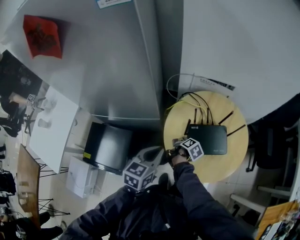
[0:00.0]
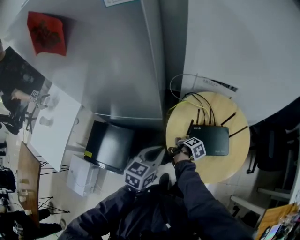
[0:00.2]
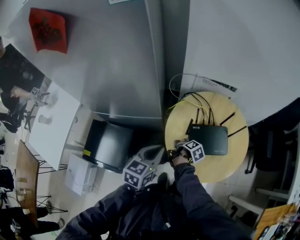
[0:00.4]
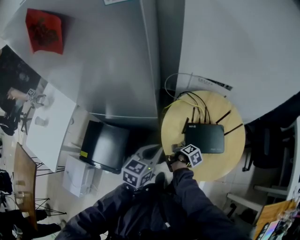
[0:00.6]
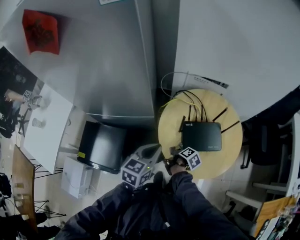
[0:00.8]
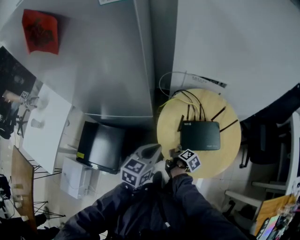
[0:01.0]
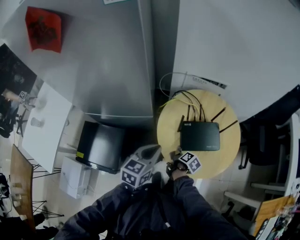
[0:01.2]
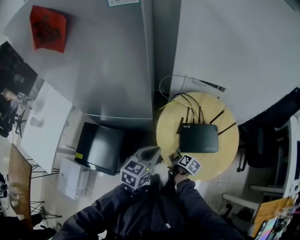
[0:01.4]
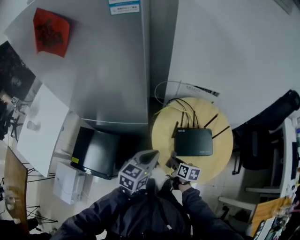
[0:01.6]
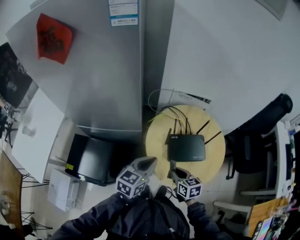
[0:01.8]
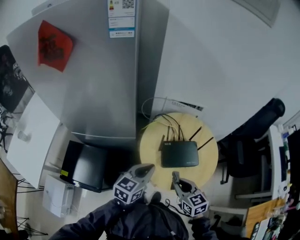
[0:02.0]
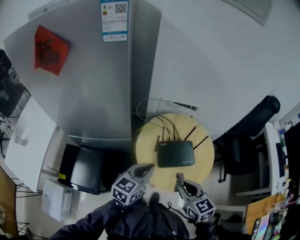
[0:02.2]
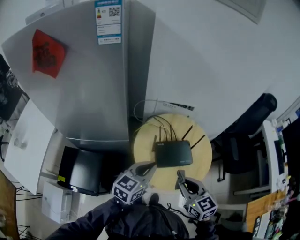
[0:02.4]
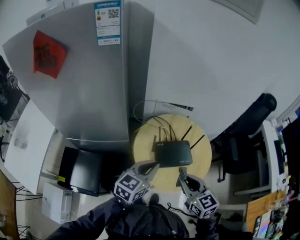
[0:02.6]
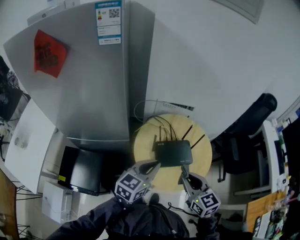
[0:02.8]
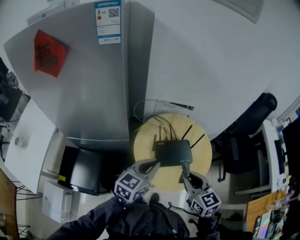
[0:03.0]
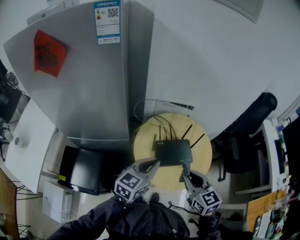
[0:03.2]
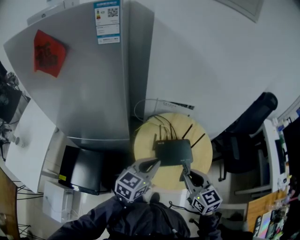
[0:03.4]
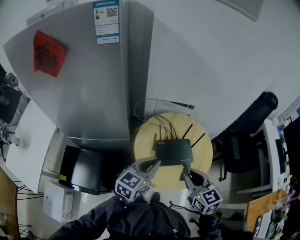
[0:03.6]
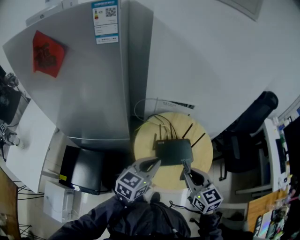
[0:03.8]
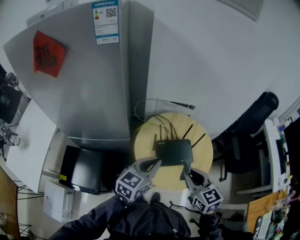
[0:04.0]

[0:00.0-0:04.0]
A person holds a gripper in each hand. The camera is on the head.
0:00.0 to 0:01.4: The right gripper travels backward by roughly 10 cm.
0:01.4 to 0:02.6: The left gripper heads upward and to the right, covering roughly 15 cm. Meanwhile the right gripper heads upward, covering approximately 30 cm, and twists roughly 60 degrees counterclockwise, seen from behind.
0:02.6 to 0:04.0: The grippers move only a little.

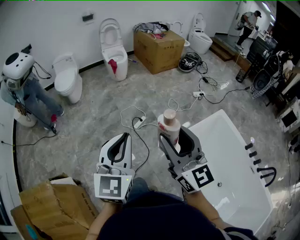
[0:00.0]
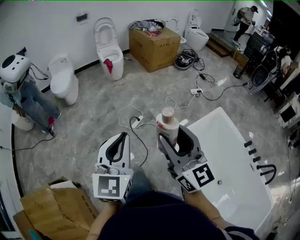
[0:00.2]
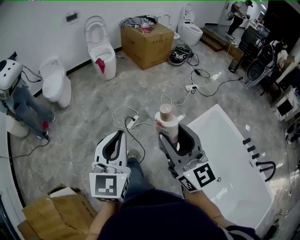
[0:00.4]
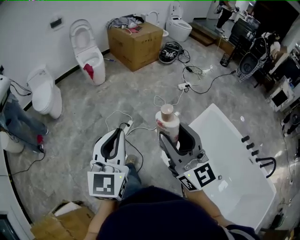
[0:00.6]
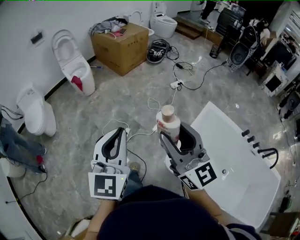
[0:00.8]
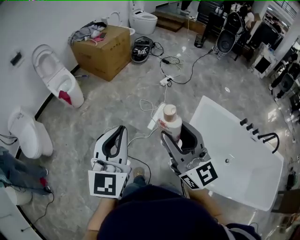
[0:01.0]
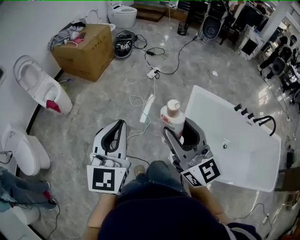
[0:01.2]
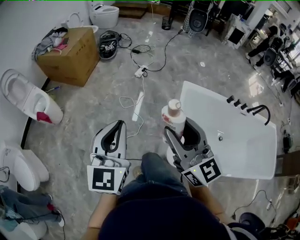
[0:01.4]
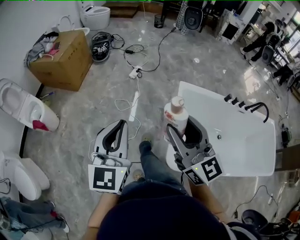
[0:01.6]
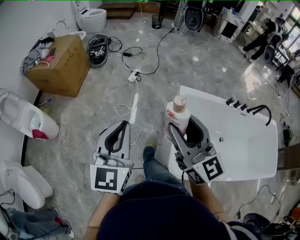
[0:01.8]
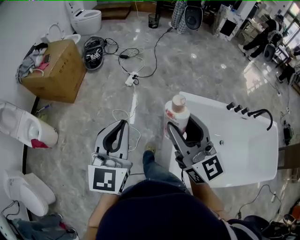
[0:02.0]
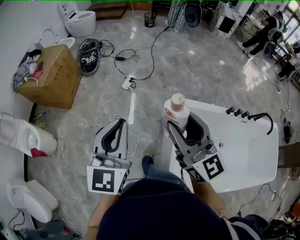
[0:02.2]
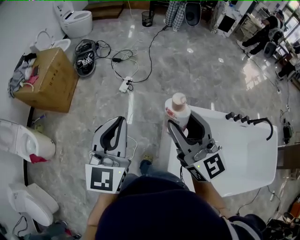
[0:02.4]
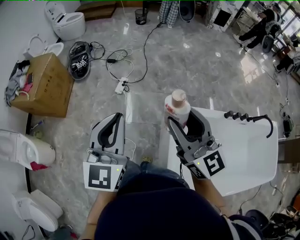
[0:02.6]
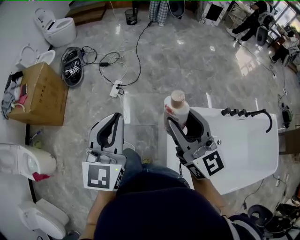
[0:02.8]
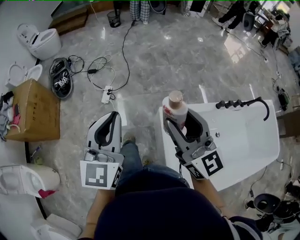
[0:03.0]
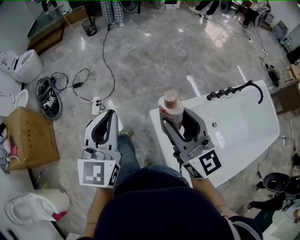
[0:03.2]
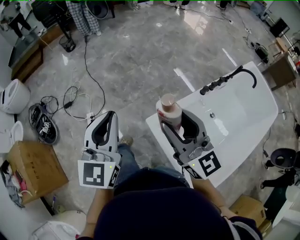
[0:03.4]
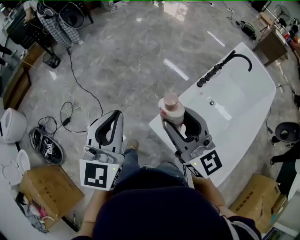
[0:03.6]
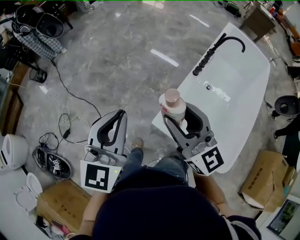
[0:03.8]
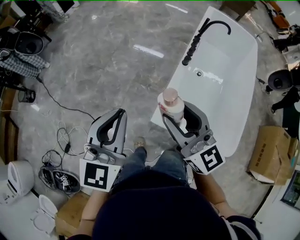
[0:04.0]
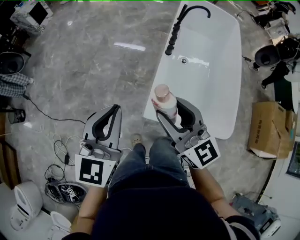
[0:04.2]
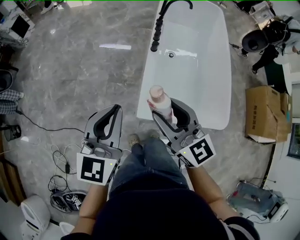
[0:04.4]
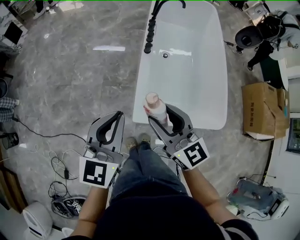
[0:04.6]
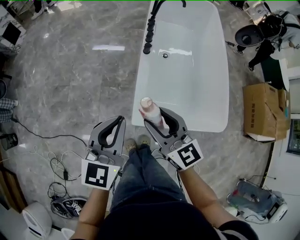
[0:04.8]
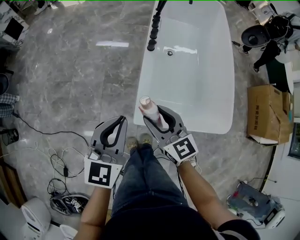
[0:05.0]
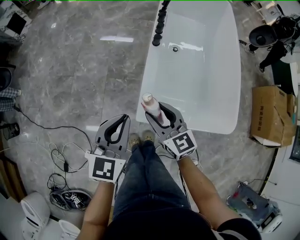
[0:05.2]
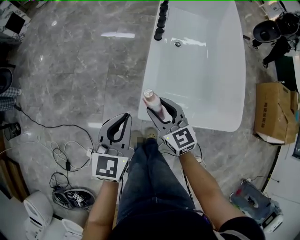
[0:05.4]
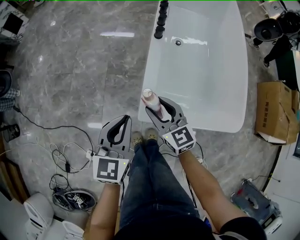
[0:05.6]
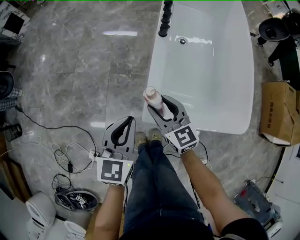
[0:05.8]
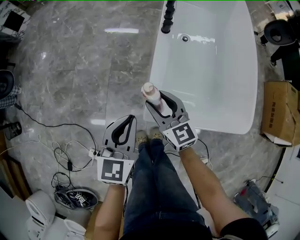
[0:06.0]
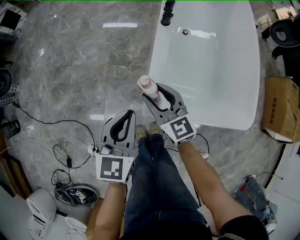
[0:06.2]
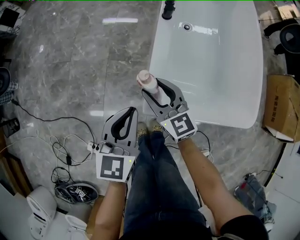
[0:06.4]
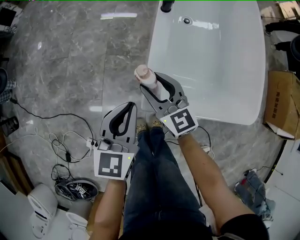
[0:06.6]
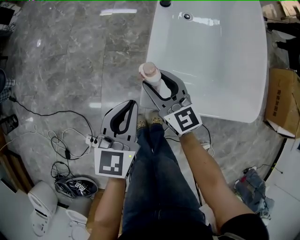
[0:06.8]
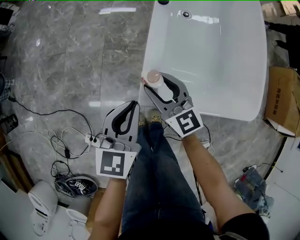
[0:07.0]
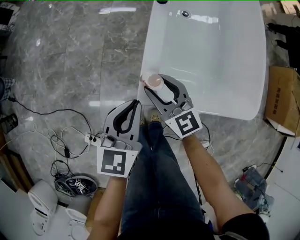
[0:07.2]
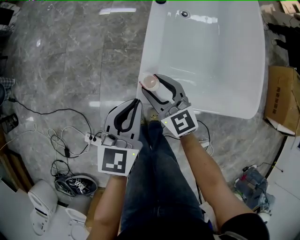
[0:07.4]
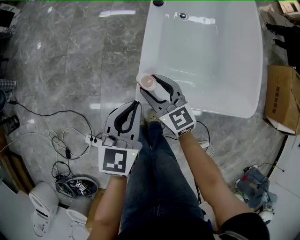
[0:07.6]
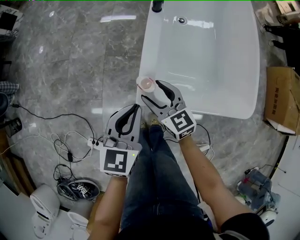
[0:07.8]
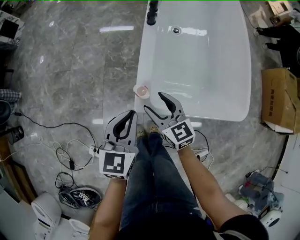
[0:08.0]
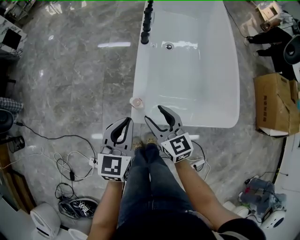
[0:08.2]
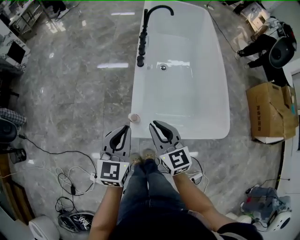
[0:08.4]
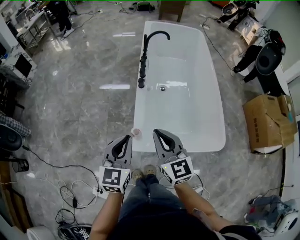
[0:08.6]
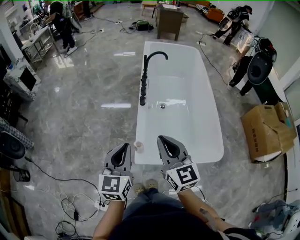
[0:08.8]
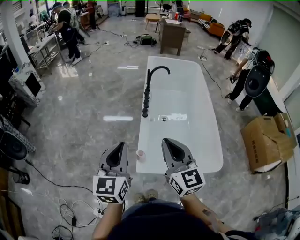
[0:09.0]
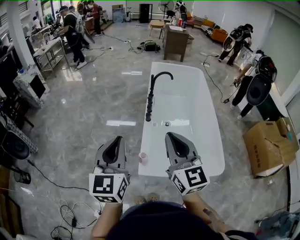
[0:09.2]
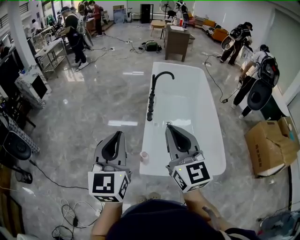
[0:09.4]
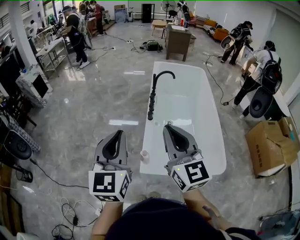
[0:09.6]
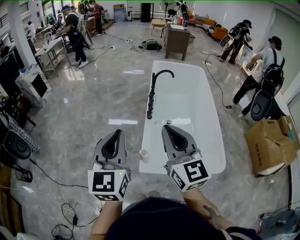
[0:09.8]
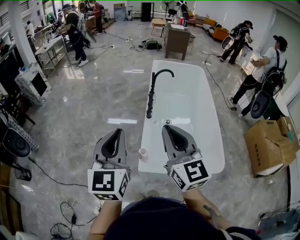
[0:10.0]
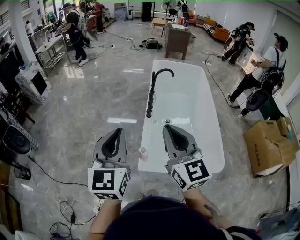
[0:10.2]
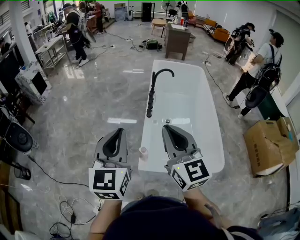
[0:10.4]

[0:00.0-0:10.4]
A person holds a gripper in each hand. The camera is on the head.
0:00.0 to 0:01.4: The right gripper moves roughly 35 cm, and rotates roughly 40 degrees. The left gripper moves about 50 cm, and changes its angle by approximately 40 degrees.
0:01.4 to 0:03.0: Both grippers are carried forward and to the right, approximately 50 cm. The left gripper rotates roughly 20 degrees, while the right gripper rotates roughly 20 degrees.
0:03.0 to 0:04.4: The right gripper moves some 20 cm, and changes its angle by some 70 degrees. Meanwhile the left gripper moves roughly 35 cm, and swivels roughly 80 degrees.
0:04.4 to 0:06.0: Both grippers travel together downward, about 25 cm.
0:06.0 to 0:07.4: The right gripper goes about 5 cm downward, while the left gripper moves about 5 cm.
0:07.4 to 0:09.0: Both grippers travel together upward, roughly 40 cm. The left gripper swivels about 20 degrees, while the right gripper turns by approximately 30 degrees, and closes its fingers.
0:09.0 to 0:10.4: Both grippers move upward, about 10 cm.

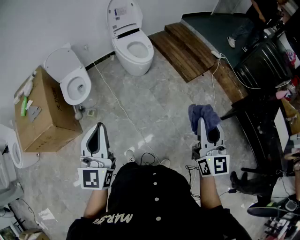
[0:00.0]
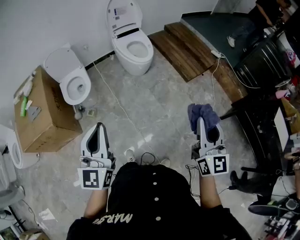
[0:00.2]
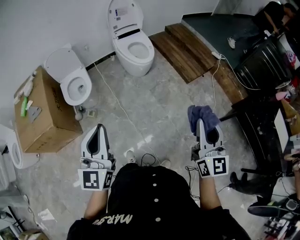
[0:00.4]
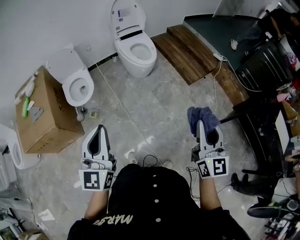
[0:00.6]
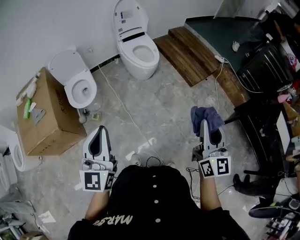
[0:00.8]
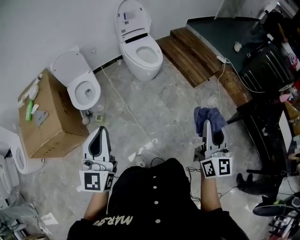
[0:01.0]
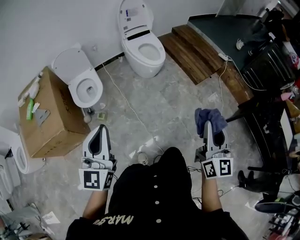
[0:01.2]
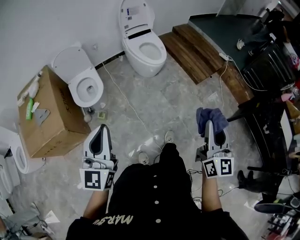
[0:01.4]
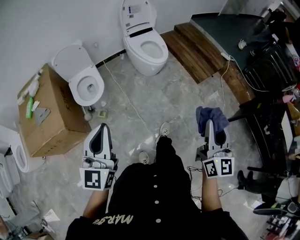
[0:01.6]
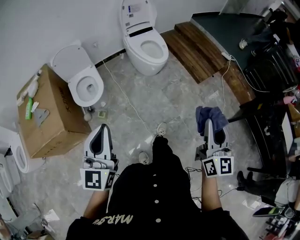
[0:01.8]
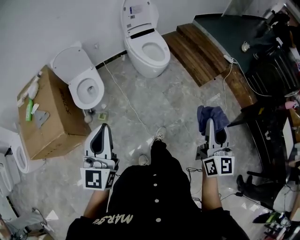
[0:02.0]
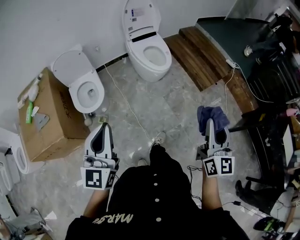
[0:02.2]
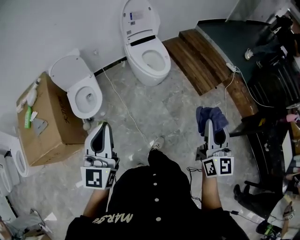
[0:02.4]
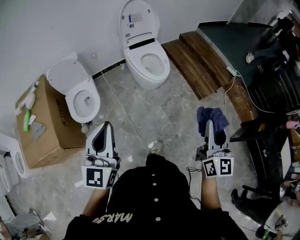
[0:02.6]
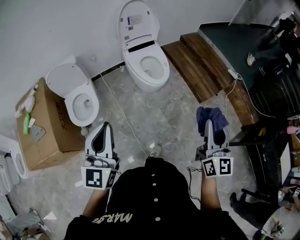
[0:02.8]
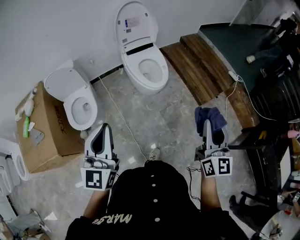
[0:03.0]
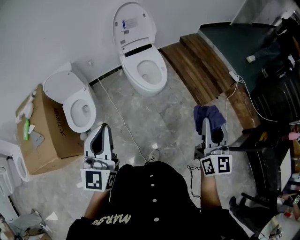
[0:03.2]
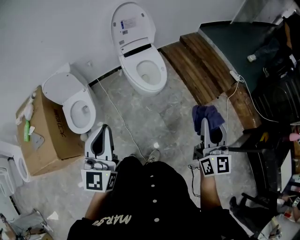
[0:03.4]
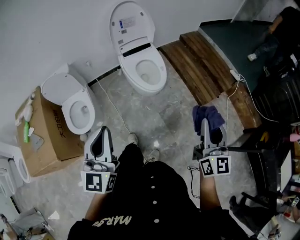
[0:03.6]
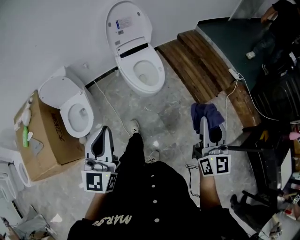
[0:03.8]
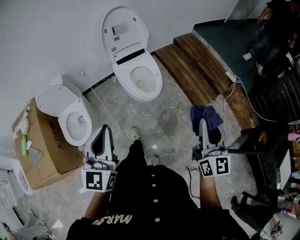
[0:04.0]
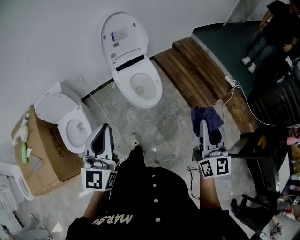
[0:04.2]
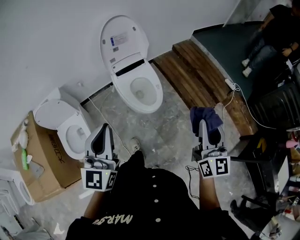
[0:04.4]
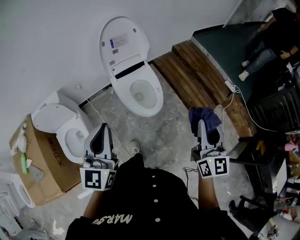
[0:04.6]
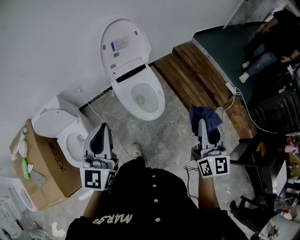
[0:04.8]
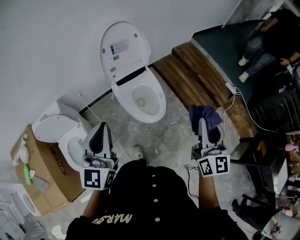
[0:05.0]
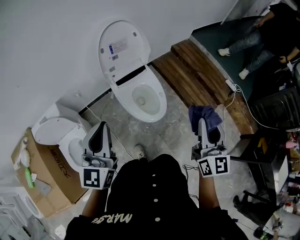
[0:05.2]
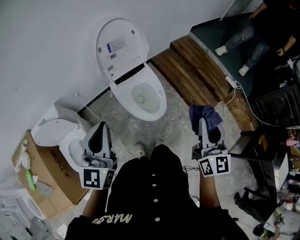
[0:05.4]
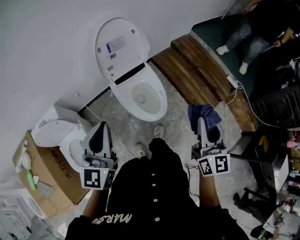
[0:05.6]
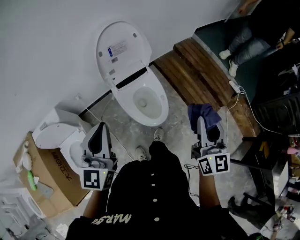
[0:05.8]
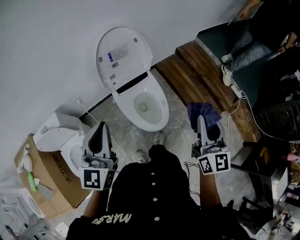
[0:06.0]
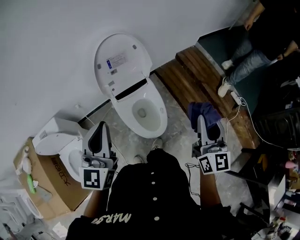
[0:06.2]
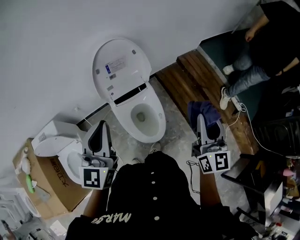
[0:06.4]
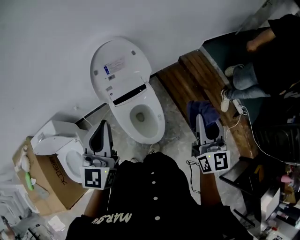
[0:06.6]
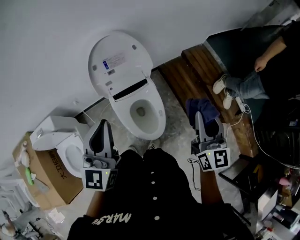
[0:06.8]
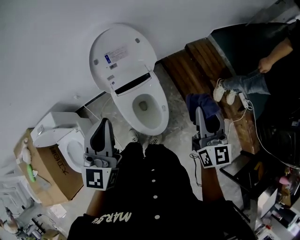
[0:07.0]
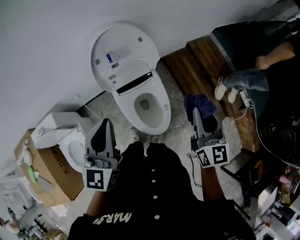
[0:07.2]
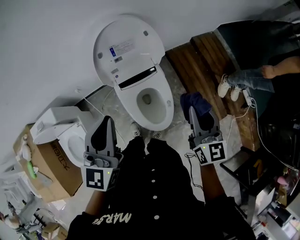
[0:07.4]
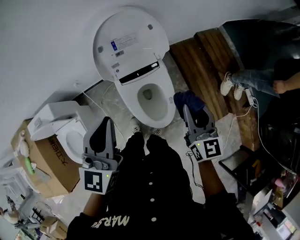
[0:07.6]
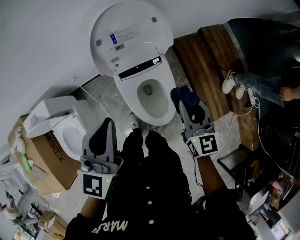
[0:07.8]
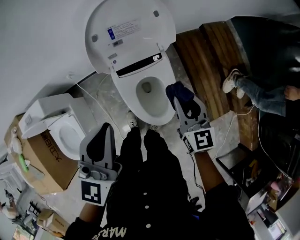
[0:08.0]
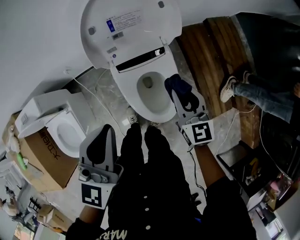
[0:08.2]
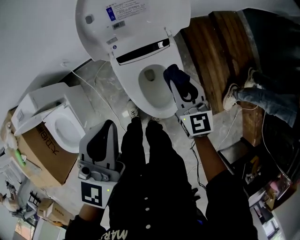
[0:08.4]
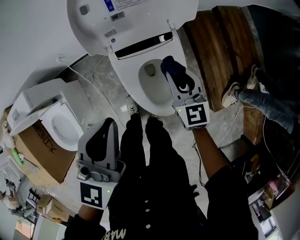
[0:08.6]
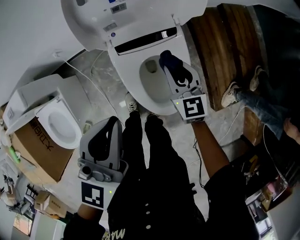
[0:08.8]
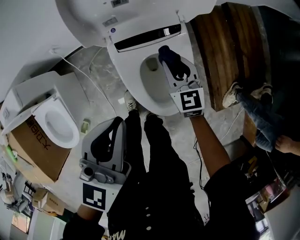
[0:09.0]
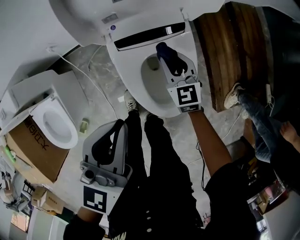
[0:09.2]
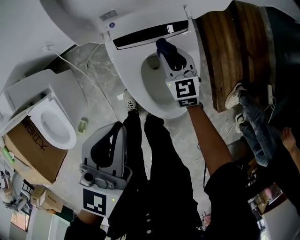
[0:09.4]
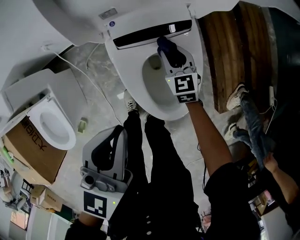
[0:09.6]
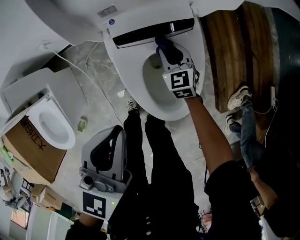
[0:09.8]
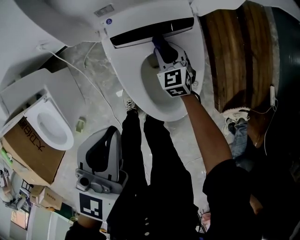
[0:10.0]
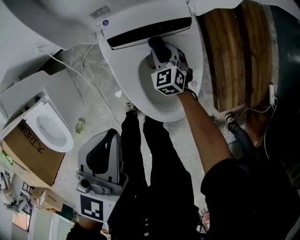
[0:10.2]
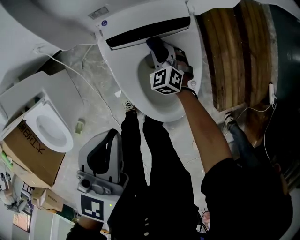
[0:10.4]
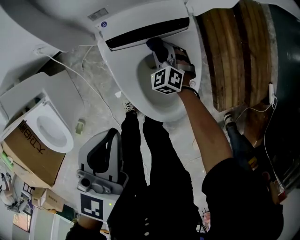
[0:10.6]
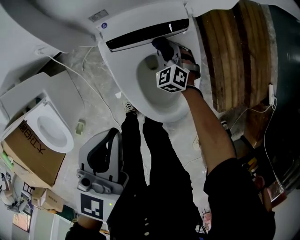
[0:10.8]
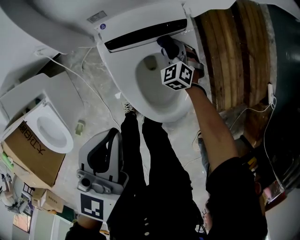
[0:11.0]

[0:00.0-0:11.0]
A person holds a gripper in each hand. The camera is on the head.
0:00.0 to 0:01.6: The two grippers go roughly 15 cm to the left.
0:01.6 to 0:03.2: The two grippers go approximately 30 cm forward.
0:03.2 to 0:04.8: Both grippers move forward, approximately 25 cm.
0:04.8 to 0:06.2: Both grippers move forward, roughly 20 cm.
0:06.2 to 0:07.8: The left gripper shifts about 15 cm forward and downward. Meanwhile the right gripper travels forward, downward and to the left by about 30 cm, and turns by approximately 30 degrees.
0:07.8 to 0:09.4: The right gripper travels downward by roughly 40 cm, and changes its angle by some 20 degrees. Meanwhile the left gripper heads downward, covering about 25 cm.
0:09.4 to 0:11.0: The right gripper travels downward by about 10 cm, and rotates roughly 40 degrees.
